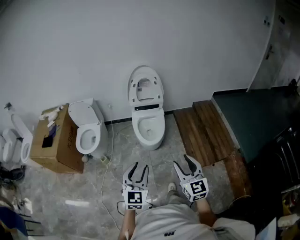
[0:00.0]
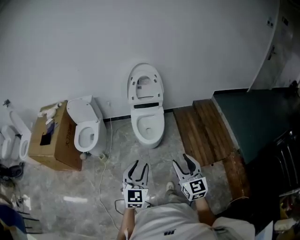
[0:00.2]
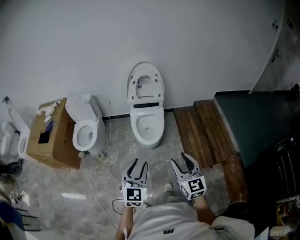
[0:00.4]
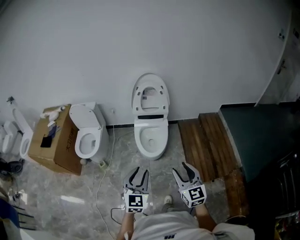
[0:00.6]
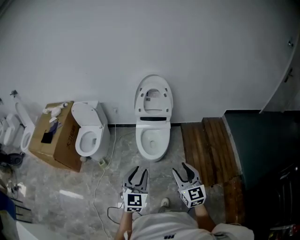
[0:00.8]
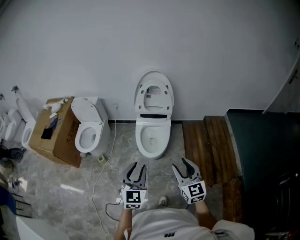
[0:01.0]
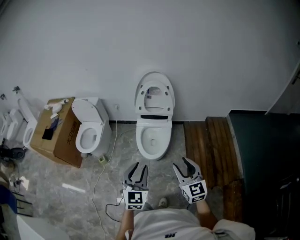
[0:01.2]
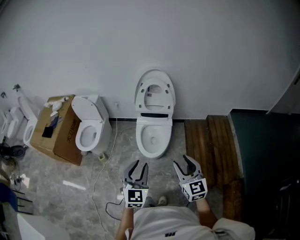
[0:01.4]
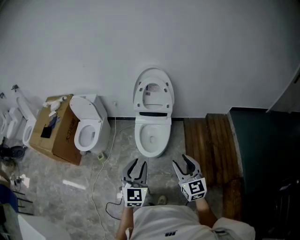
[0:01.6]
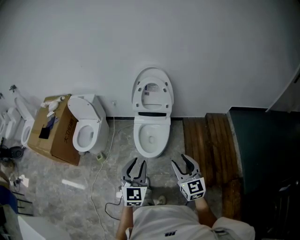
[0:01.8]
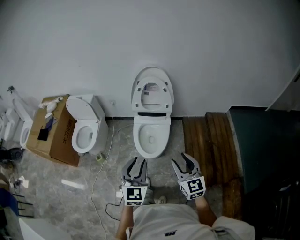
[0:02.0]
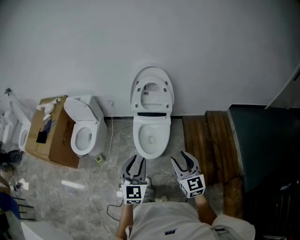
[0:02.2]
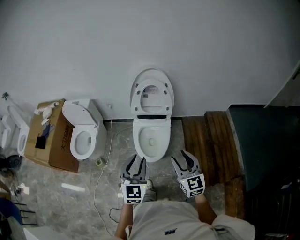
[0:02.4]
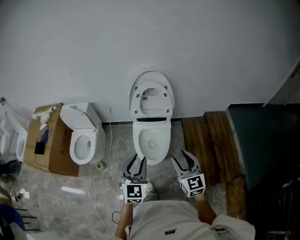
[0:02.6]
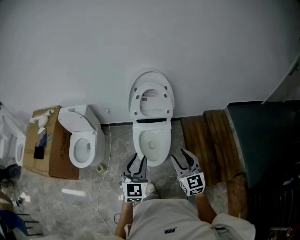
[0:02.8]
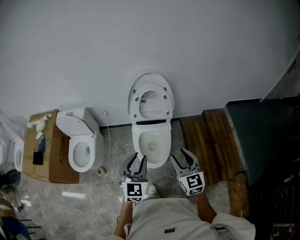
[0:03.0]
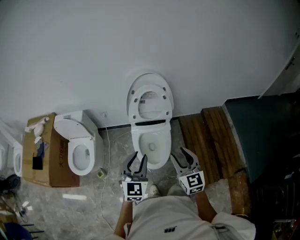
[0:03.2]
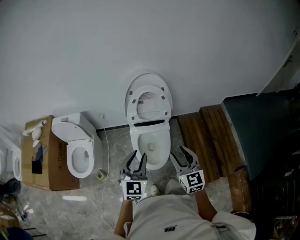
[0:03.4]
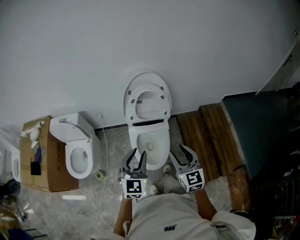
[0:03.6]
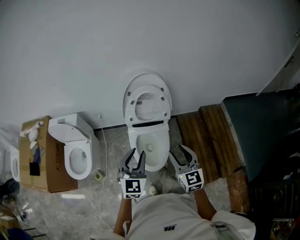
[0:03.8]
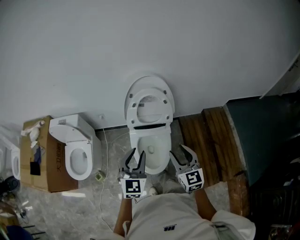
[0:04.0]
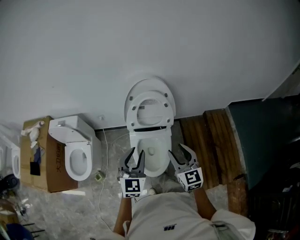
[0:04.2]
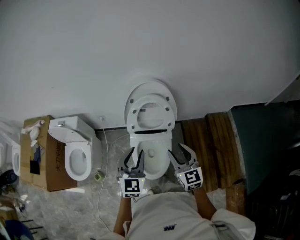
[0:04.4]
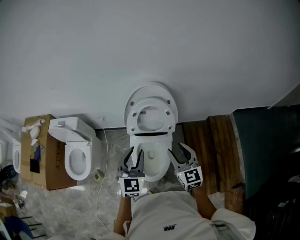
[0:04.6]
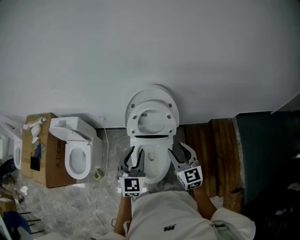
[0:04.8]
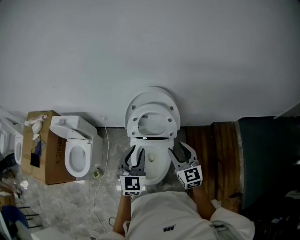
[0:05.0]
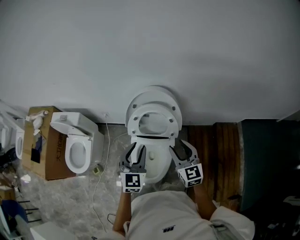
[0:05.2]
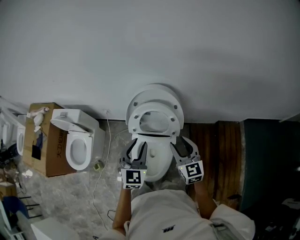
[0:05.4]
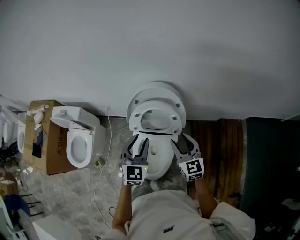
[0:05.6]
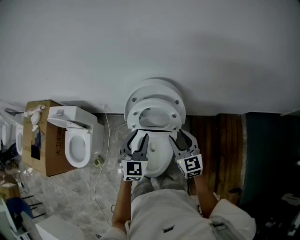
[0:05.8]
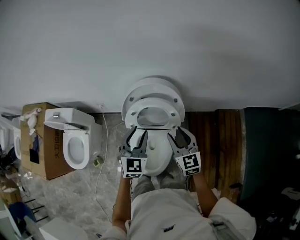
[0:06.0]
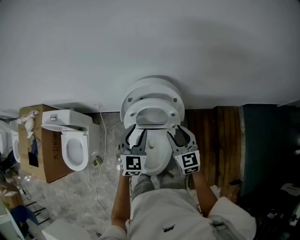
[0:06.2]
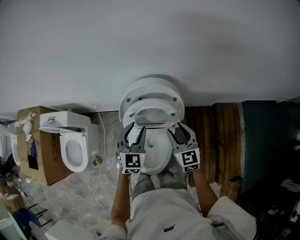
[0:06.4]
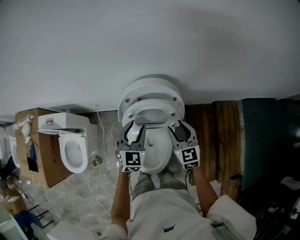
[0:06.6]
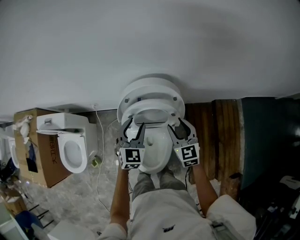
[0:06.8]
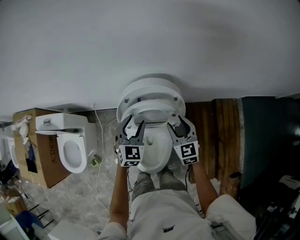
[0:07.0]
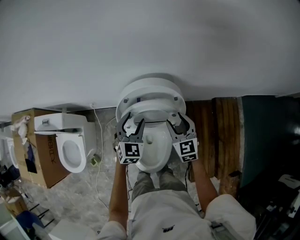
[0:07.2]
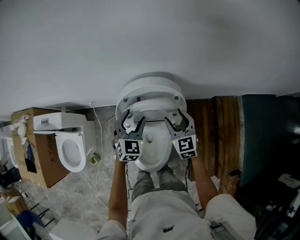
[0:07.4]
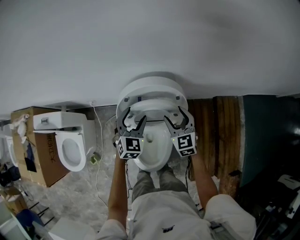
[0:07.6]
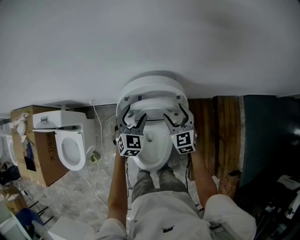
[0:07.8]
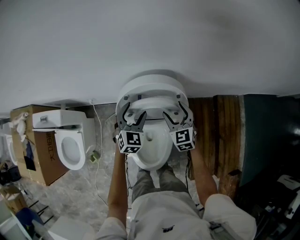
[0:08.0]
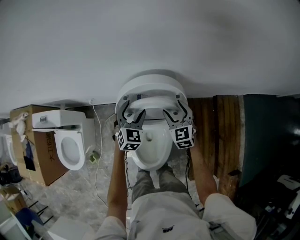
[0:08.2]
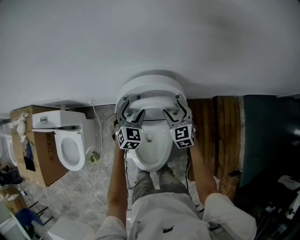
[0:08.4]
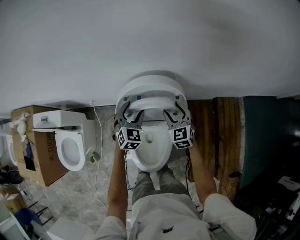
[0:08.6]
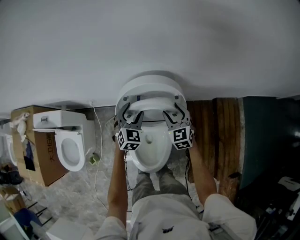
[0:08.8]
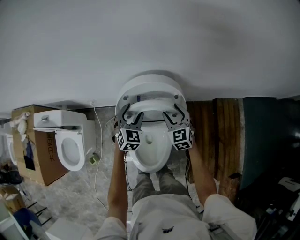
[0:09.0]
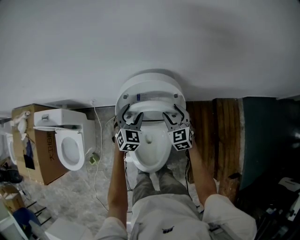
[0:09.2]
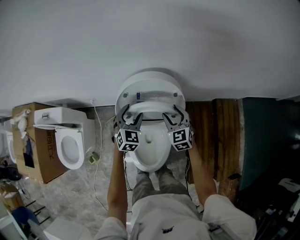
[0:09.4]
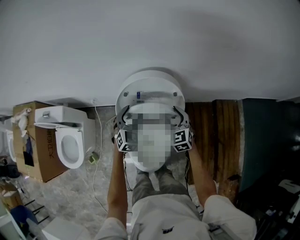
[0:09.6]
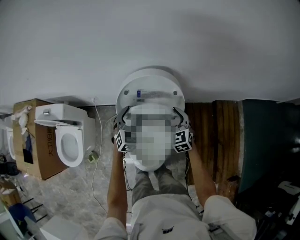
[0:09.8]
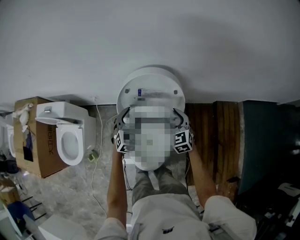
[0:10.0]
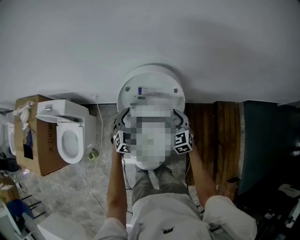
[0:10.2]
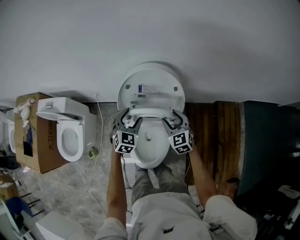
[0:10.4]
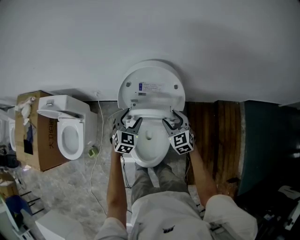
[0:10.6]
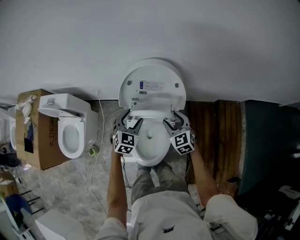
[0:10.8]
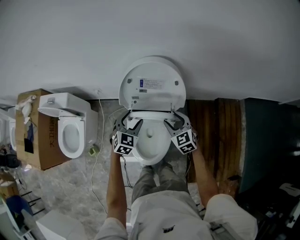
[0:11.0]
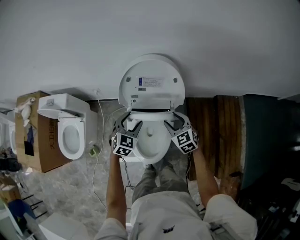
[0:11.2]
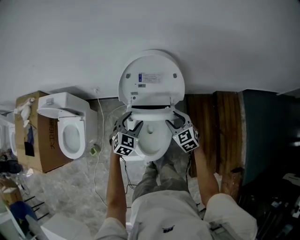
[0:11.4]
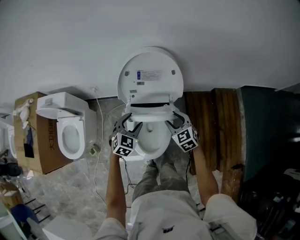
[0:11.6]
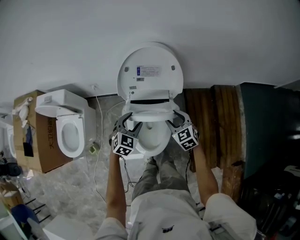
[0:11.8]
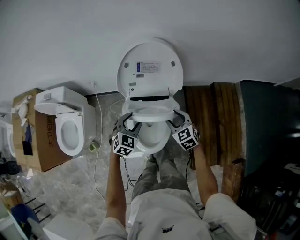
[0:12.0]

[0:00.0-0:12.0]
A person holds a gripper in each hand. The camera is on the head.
0:00.0 to 0:01.6: Both grippers move forward and to the right, roughly 25 cm.
0:01.6 to 0:03.0: The left gripper goes roughly 25 cm forward, while the right gripper is displaced forward and to the left by approximately 25 cm.
0:03.0 to 0:04.4: The grippers both shift forward by roughly 20 cm.
0:04.4 to 0:06.0: Both grippers move forward, roughly 20 cm.
0:06.0 to 0:07.6: Both grippers move forward and downward, some 15 cm. The left gripper opens.
0:07.6 to 0:09.0: The grippers make only small movements.
0:09.0 to 0:10.4: Both grippers move backward, approximately 10 cm.
0:10.4 to 0:12.0: Both grippers travel together backward, some 15 cm.

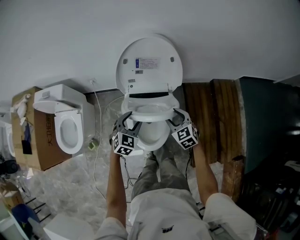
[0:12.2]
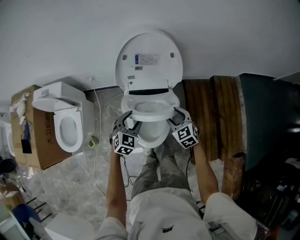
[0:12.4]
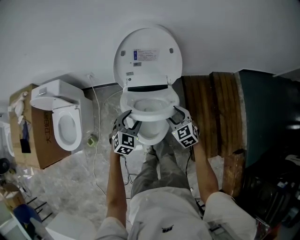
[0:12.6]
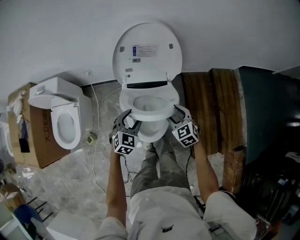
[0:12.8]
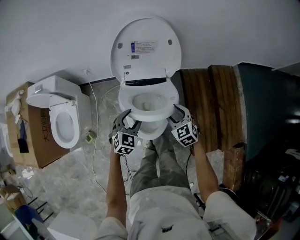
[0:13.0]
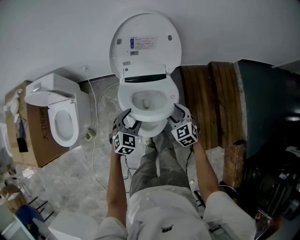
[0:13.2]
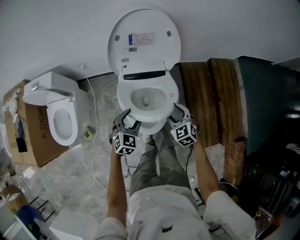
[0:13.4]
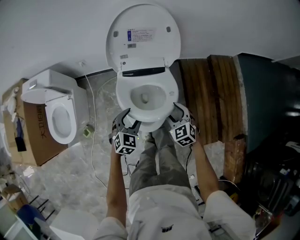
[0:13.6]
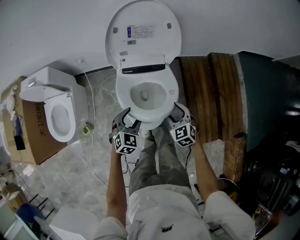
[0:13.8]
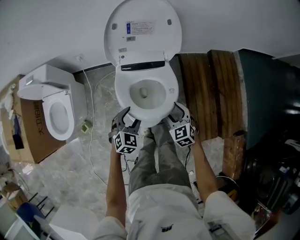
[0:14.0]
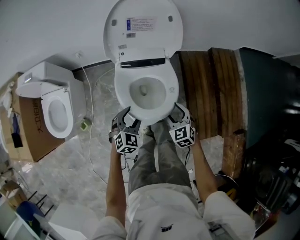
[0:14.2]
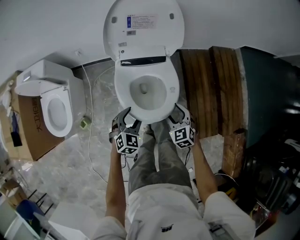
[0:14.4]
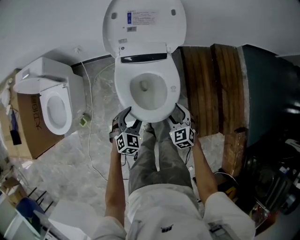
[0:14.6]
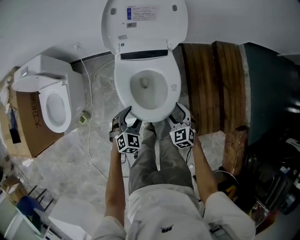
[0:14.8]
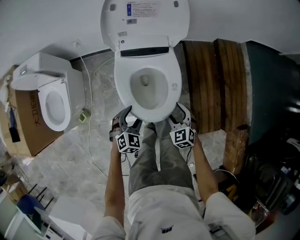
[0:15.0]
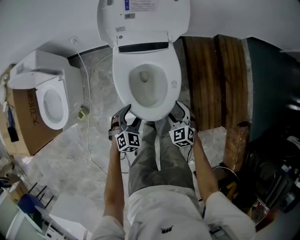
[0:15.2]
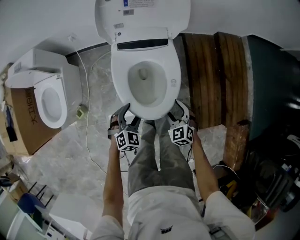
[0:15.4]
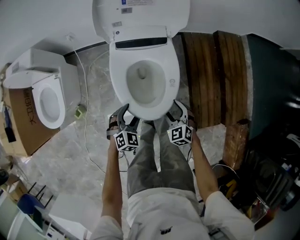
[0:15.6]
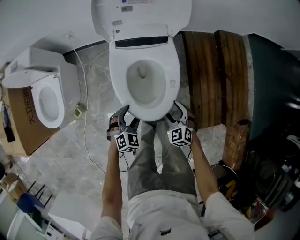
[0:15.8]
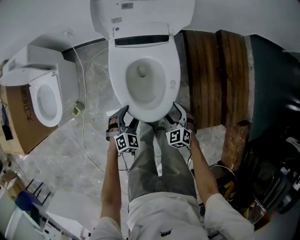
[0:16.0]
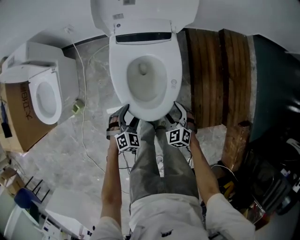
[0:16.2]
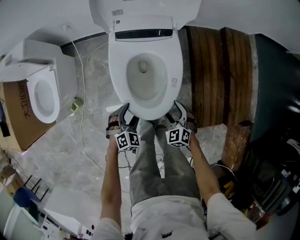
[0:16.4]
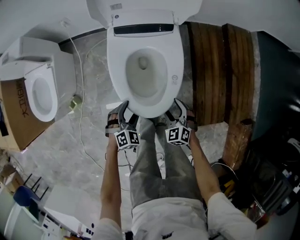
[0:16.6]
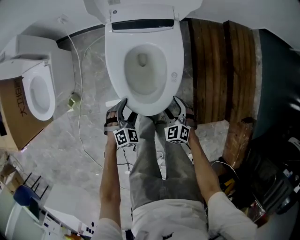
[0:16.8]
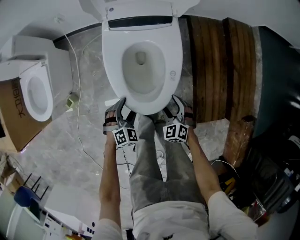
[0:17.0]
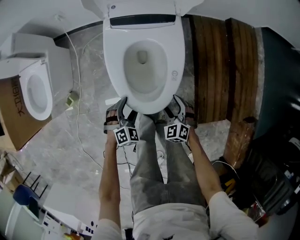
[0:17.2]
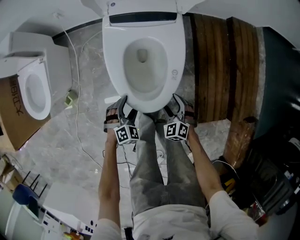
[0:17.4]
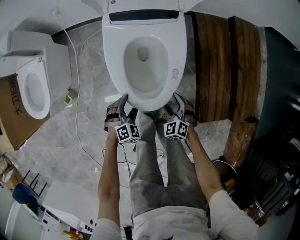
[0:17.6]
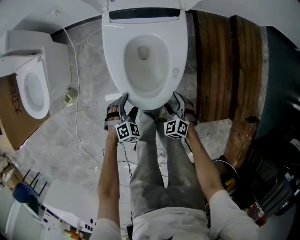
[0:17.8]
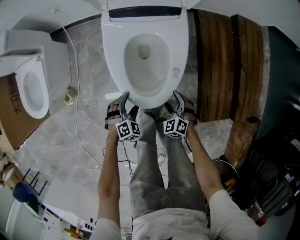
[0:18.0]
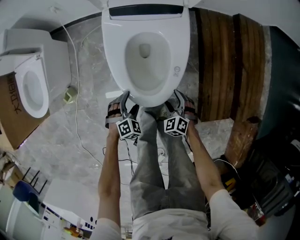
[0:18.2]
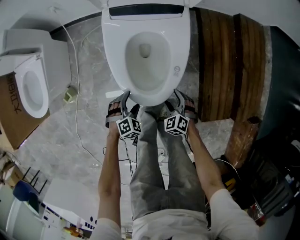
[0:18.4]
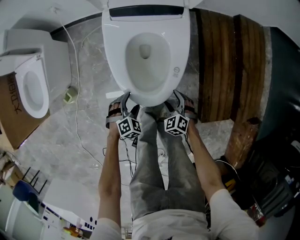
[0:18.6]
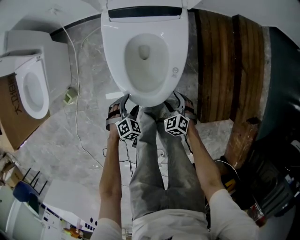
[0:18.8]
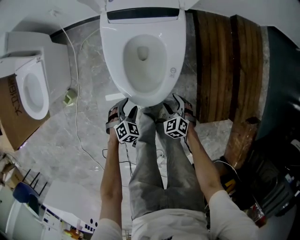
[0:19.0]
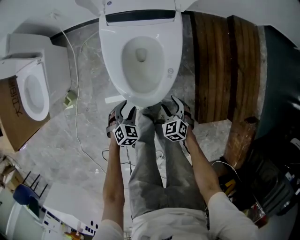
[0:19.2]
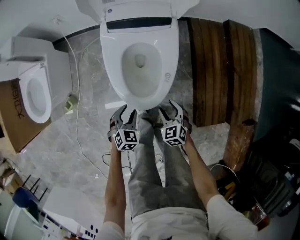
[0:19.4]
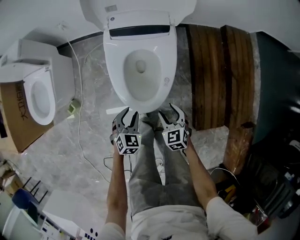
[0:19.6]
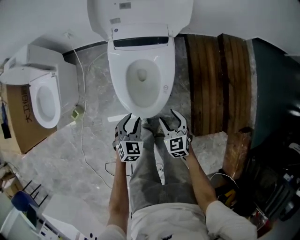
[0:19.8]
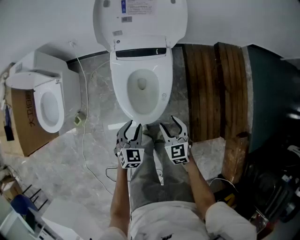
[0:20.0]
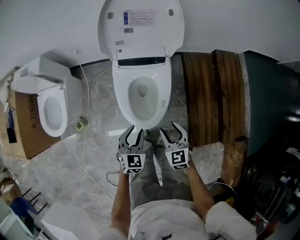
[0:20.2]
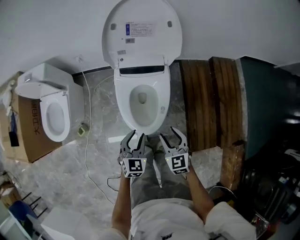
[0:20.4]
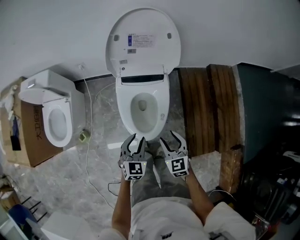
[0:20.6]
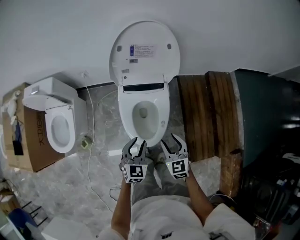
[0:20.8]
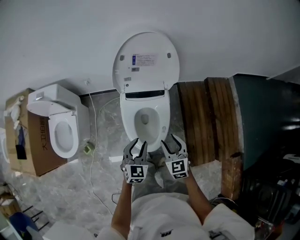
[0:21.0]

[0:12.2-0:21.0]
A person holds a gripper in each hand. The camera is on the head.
0:12.2 to 0:13.6: Both grippers move backward and downward, approximately 10 cm.
0:13.6 to 0:15.2: The two grippers go roughly 15 cm downward and backward.
0:15.2 to 0:16.6: Both grippers move downward, some 10 cm.
0:16.6 to 0:18.0: Both grippers travel together downward, some 10 cm.
0:18.0 to 0:19.6: The grippers both shift upward by about 15 cm. The left gripper rotates approximately 30 degrees, and closes up. Meanwhile the right gripper turns by about 30 degrees.
0:19.6 to 0:21.0: The grippers both shift upward by some 30 cm.

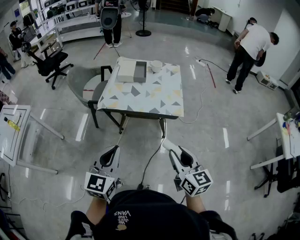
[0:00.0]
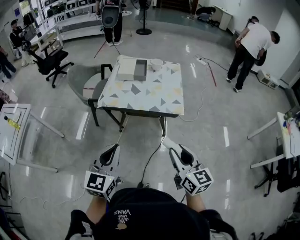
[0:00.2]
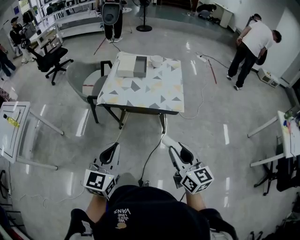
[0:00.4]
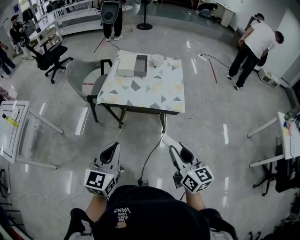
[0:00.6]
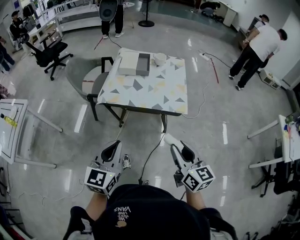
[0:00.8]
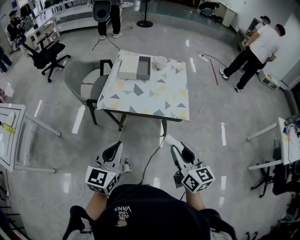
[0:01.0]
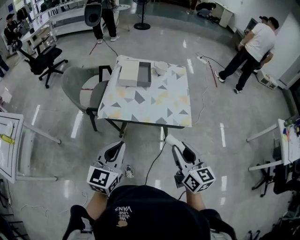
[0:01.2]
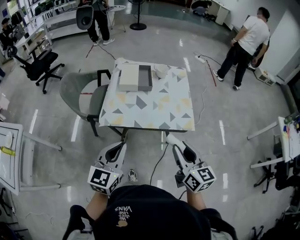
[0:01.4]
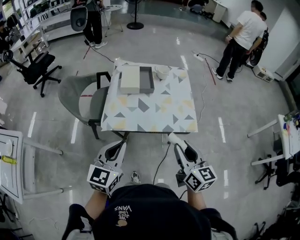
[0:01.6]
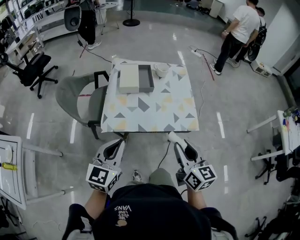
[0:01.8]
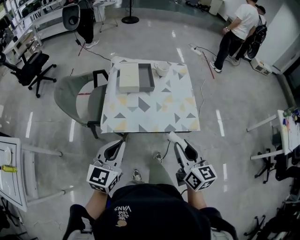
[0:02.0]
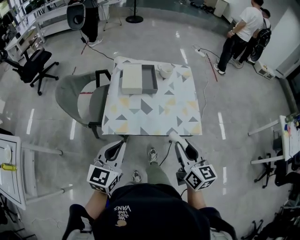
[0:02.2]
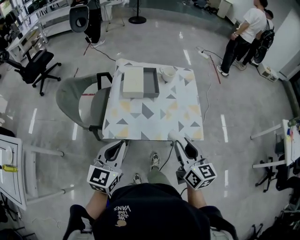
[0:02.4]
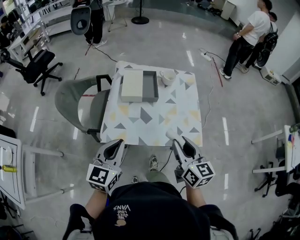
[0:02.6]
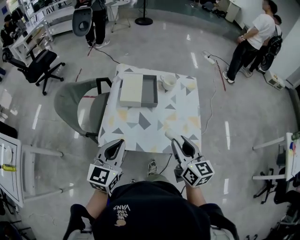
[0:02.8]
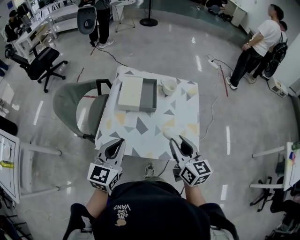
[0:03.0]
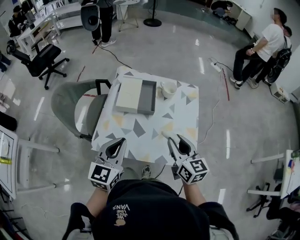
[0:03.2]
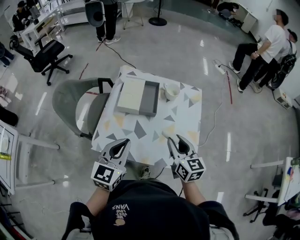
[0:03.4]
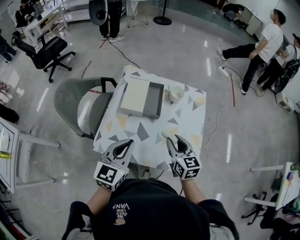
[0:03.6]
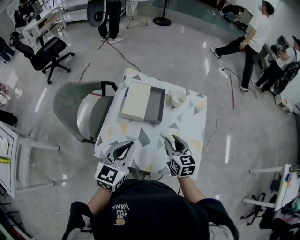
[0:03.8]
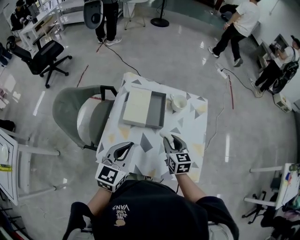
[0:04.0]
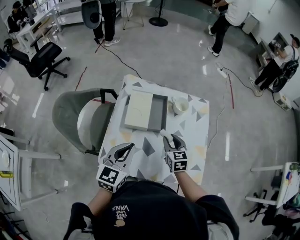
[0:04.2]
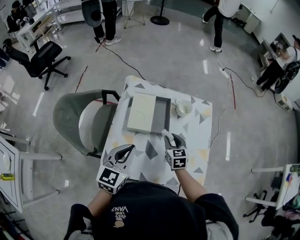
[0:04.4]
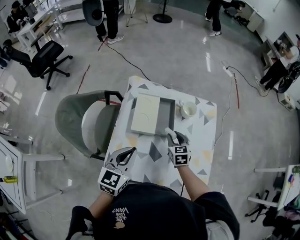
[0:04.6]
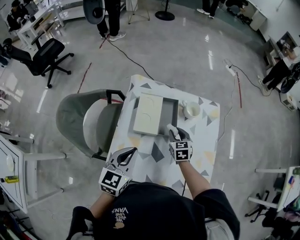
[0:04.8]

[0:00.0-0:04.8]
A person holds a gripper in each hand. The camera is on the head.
0:00.0 to 0:01.6: The two grippers go about 25 cm forward and to the left.
0:01.6 to 0:03.2: The grippers both shift forward by approximately 25 cm.
0:03.2 to 0:04.8: The left gripper shifts approximately 20 cm forward and to the left; the right gripper goes roughly 35 cm forward, downward and to the left, and rotates roughly 30 degrees.
